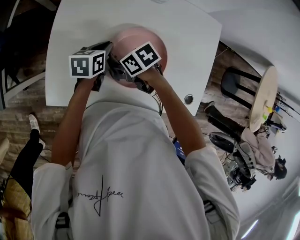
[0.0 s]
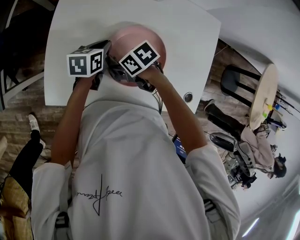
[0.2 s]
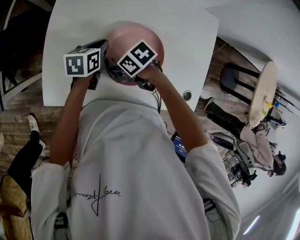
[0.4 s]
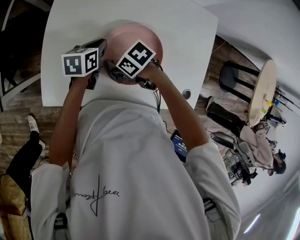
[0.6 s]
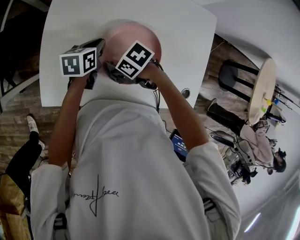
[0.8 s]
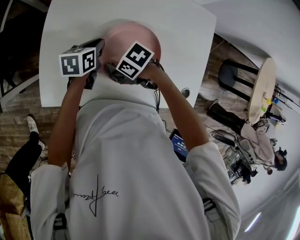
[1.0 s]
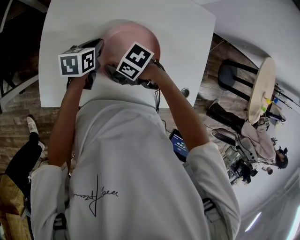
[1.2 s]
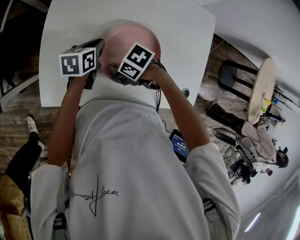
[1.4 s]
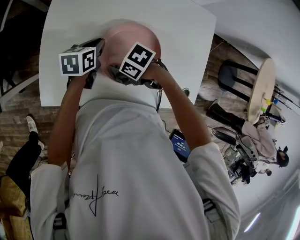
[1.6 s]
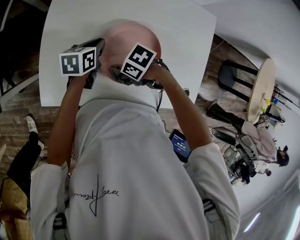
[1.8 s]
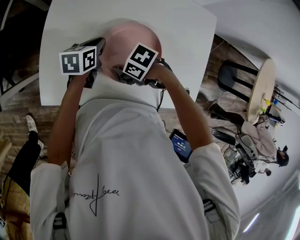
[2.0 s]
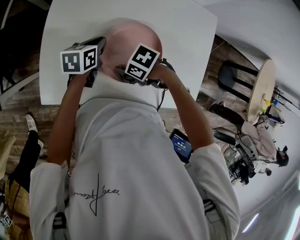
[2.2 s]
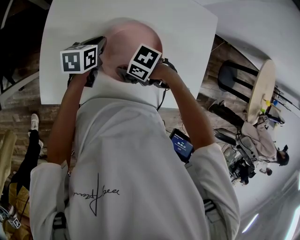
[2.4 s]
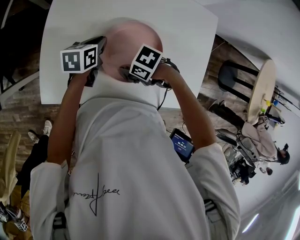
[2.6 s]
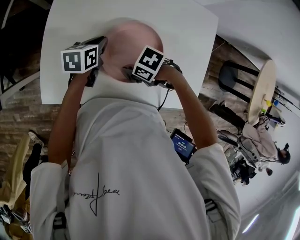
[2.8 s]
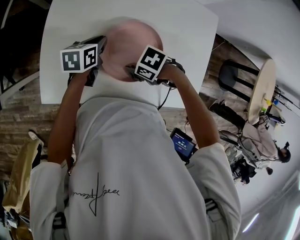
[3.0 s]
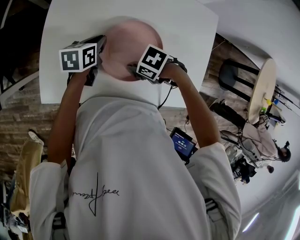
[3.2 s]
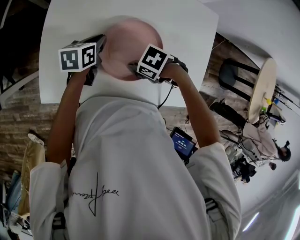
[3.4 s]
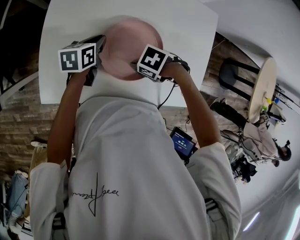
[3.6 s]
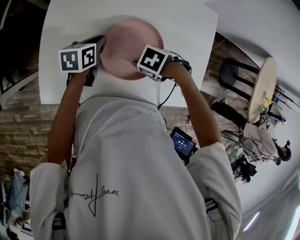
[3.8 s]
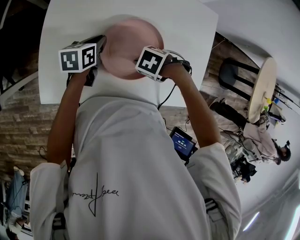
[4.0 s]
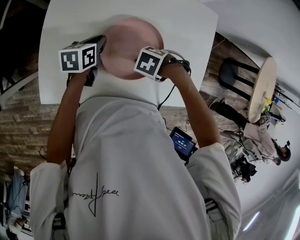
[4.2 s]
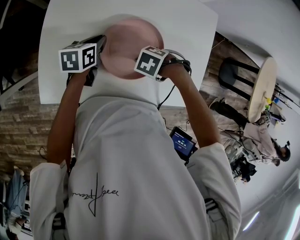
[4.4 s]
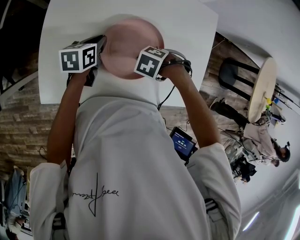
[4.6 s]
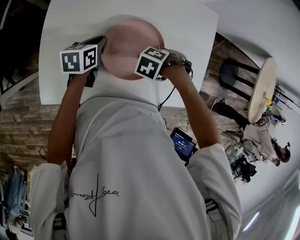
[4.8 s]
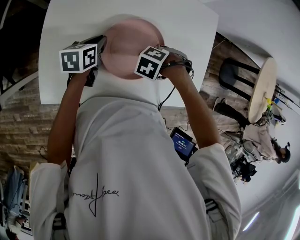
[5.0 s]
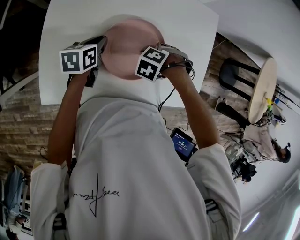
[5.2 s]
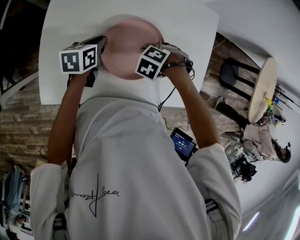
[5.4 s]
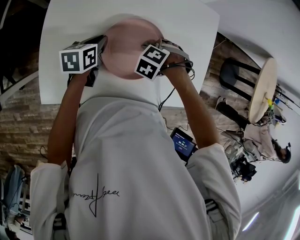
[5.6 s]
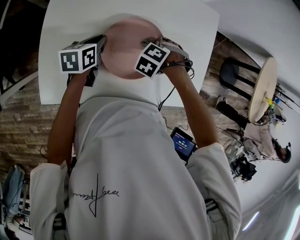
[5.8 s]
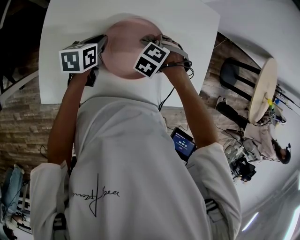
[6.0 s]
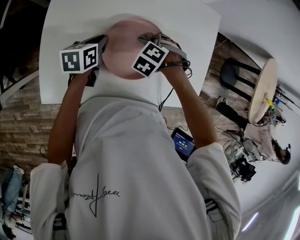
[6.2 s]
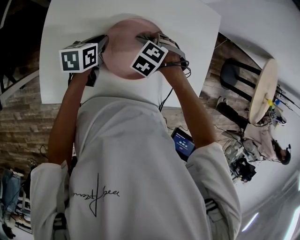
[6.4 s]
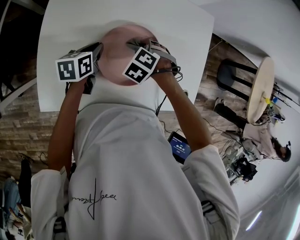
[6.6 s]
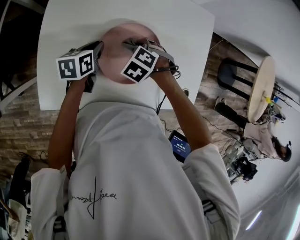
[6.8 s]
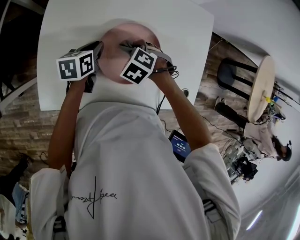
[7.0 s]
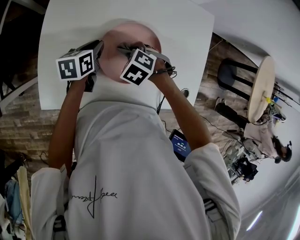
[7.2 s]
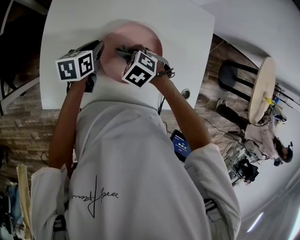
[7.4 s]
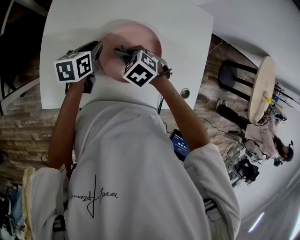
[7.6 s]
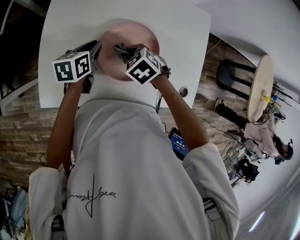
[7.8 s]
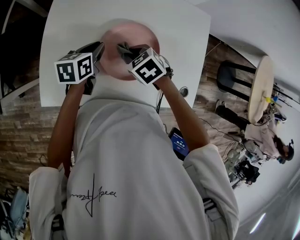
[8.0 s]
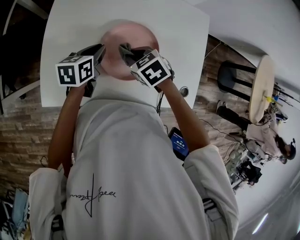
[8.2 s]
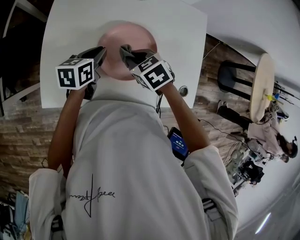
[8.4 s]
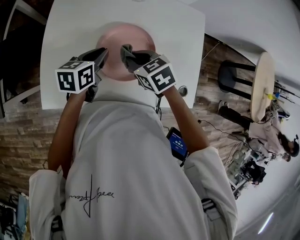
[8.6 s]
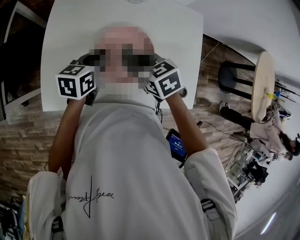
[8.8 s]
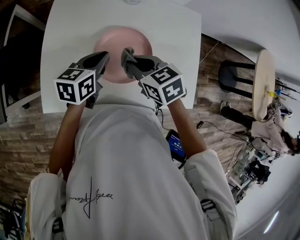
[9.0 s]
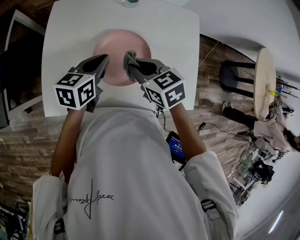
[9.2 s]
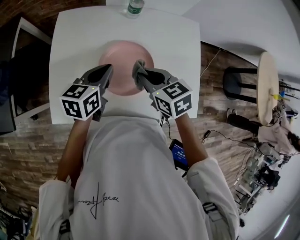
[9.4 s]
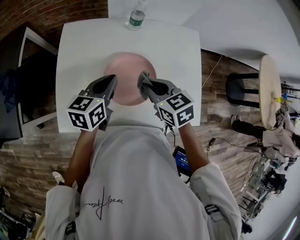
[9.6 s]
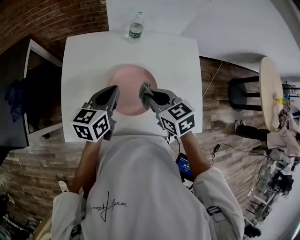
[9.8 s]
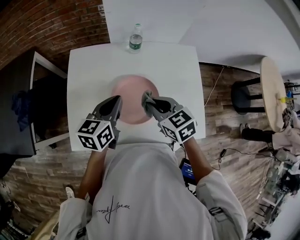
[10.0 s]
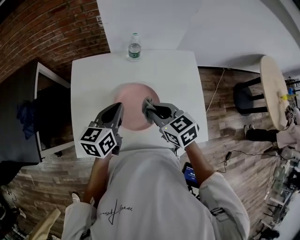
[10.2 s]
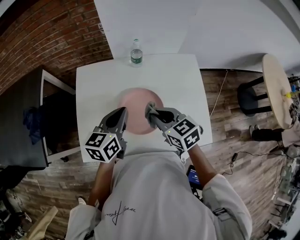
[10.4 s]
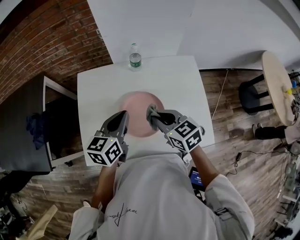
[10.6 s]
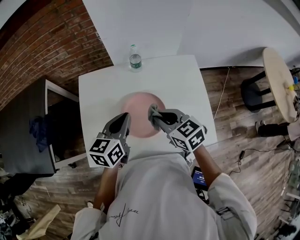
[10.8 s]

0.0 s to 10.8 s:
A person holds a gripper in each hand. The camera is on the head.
0.0 to 1.6 s: The right gripper changes place by about 5 cm, and swivels approximately 20 degrees.
1.6 to 3.0 s: The right gripper ends up about 5 cm from where it was.
3.0 to 4.6 s: The right gripper shifts by roughly 5 cm, and swivels approximately 30 degrees.
4.6 to 6.2 s: The right gripper shifts by approximately 10 cm, and turns by about 30 degrees.
6.2 to 7.8 s: The right gripper ends up some 10 cm from where it was, and turns by about 40 degrees.
7.8 to 9.2 s: The left gripper travels upward and to the right by some 10 cm, while the right gripper goes about 10 cm upward, and turns by roughly 30 degrees.
9.2 to 10.8 s: The grippers both shift upward by some 10 cm.

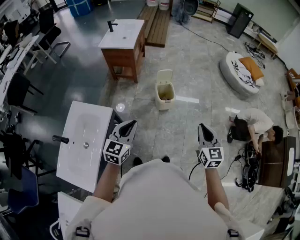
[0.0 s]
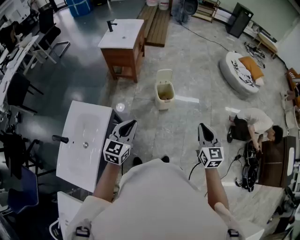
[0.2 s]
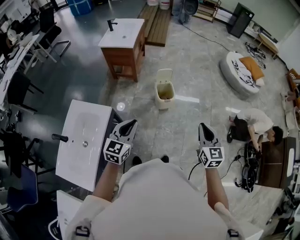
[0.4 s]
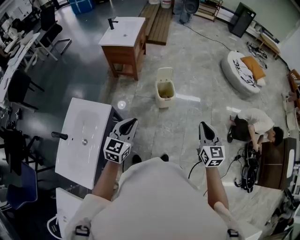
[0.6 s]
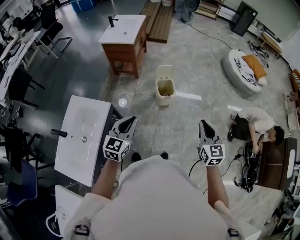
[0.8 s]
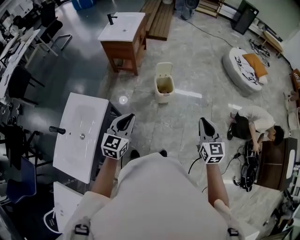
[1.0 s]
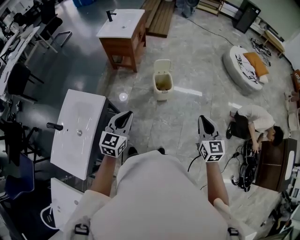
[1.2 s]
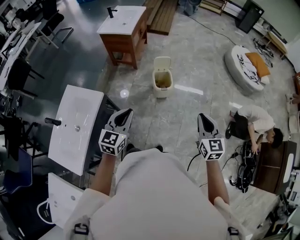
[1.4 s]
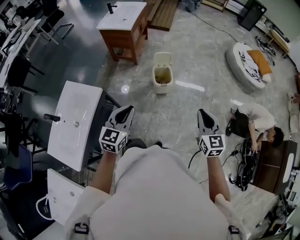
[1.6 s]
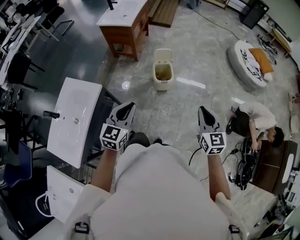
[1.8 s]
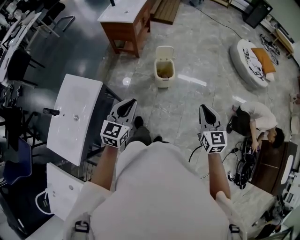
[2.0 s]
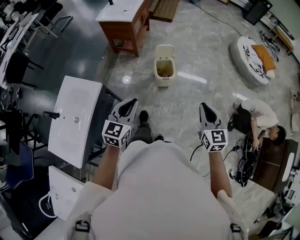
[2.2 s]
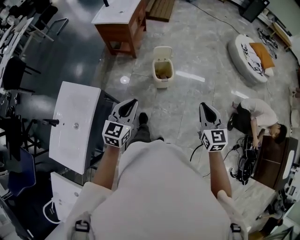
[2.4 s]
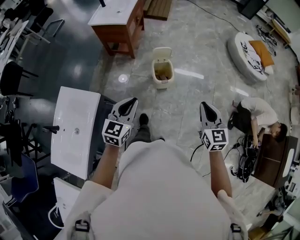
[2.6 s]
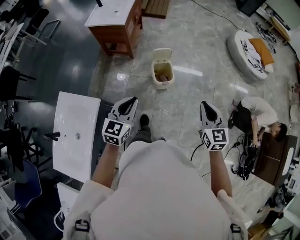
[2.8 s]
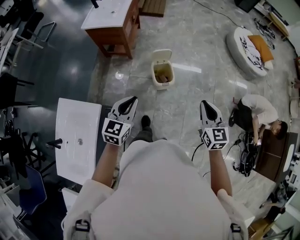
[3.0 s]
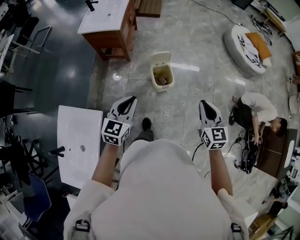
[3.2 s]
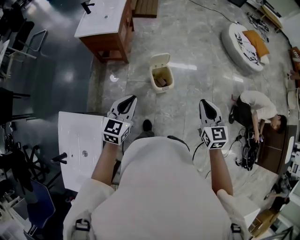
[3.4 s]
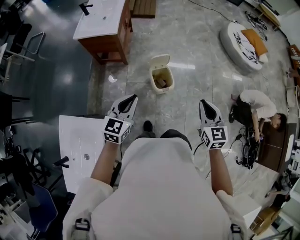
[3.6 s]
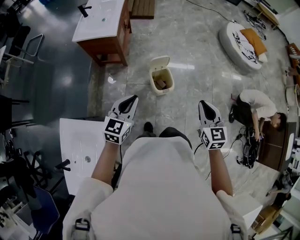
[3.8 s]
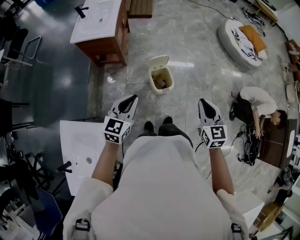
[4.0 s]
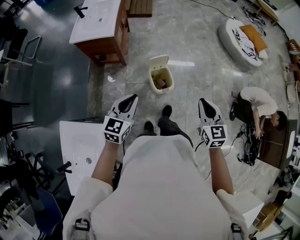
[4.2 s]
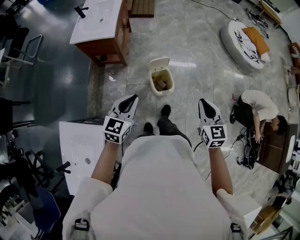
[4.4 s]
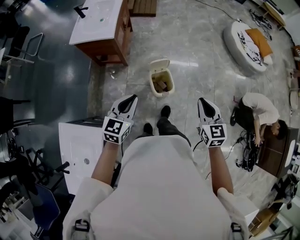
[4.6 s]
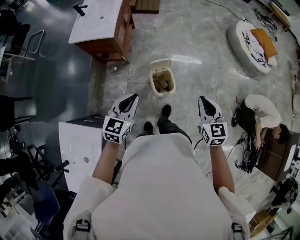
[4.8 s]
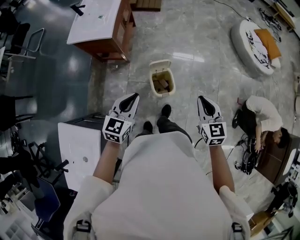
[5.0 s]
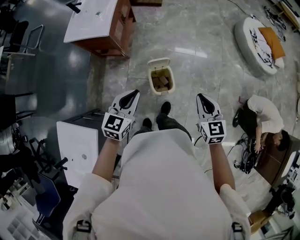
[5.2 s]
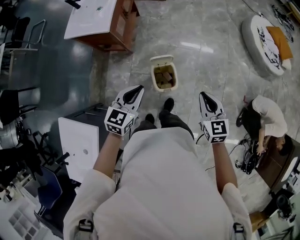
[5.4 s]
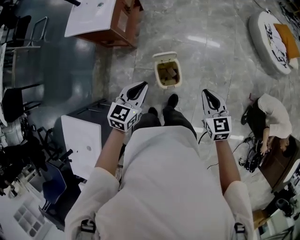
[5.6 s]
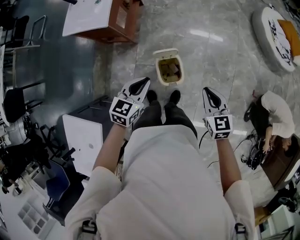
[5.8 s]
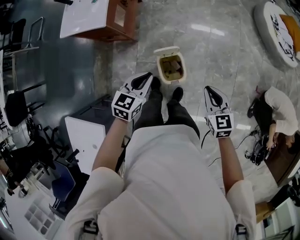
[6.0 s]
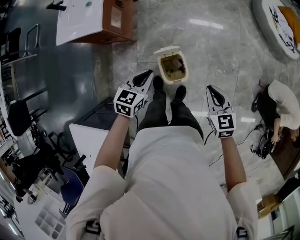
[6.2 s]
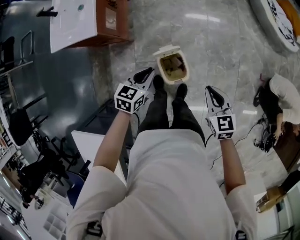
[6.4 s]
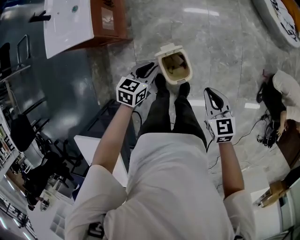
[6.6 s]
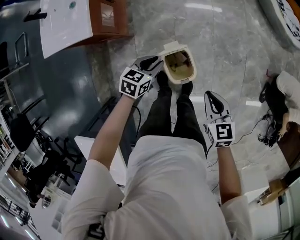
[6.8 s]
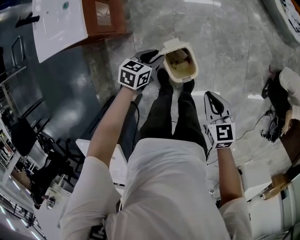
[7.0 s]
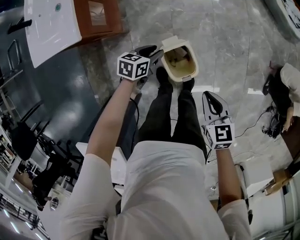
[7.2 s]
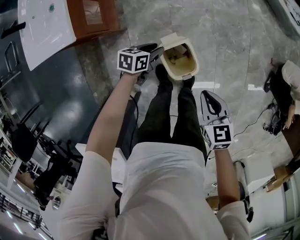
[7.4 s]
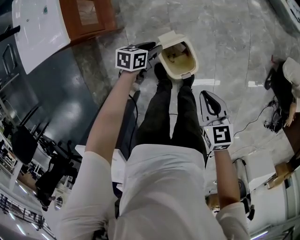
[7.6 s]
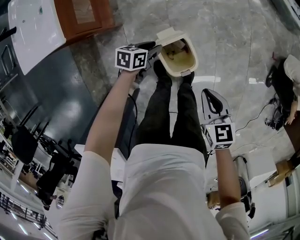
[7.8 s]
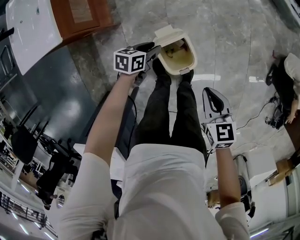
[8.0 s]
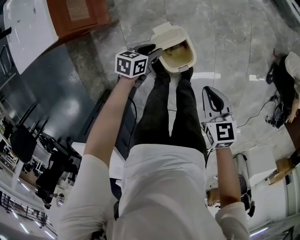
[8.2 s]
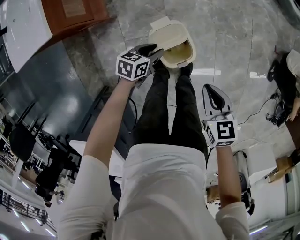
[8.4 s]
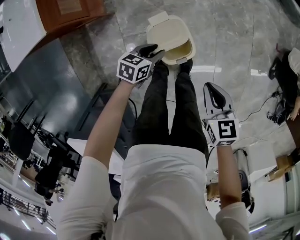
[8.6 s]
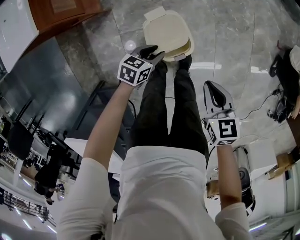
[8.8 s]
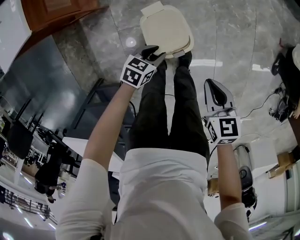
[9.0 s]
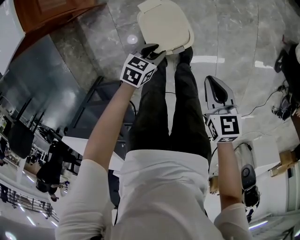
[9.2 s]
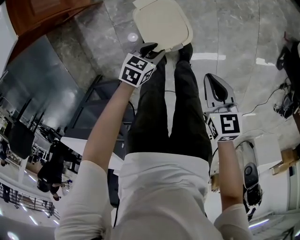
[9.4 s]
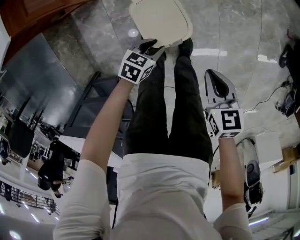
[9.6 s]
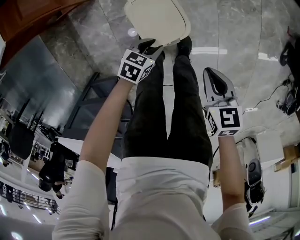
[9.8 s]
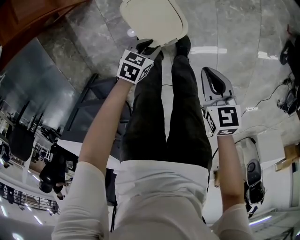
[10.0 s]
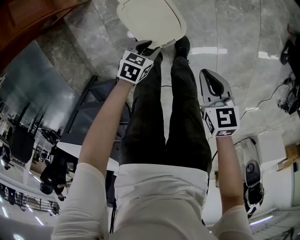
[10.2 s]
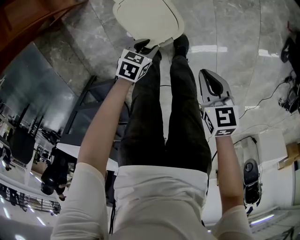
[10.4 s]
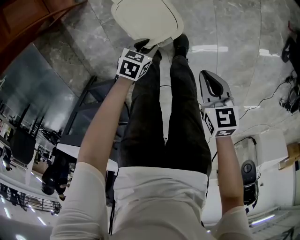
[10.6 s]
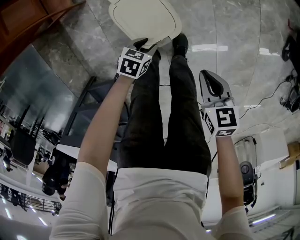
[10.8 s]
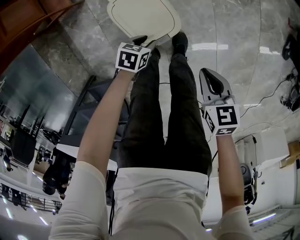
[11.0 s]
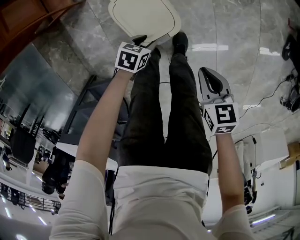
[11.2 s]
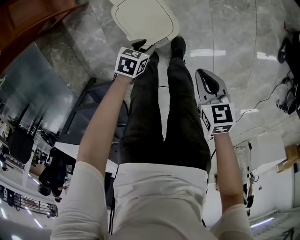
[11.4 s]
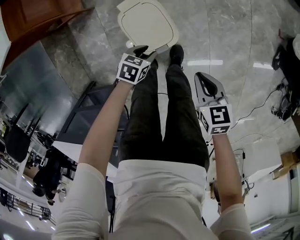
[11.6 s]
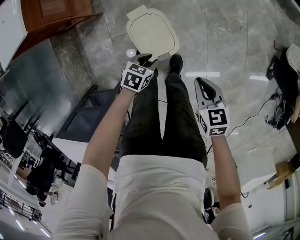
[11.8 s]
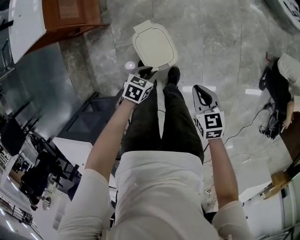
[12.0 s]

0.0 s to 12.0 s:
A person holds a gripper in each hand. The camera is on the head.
0.0 to 1.6 s: Both grippers travel together to the right, about 10 cm.
1.6 to 3.0 s: The right gripper goes some 15 cm forward and to the left, while the left gripper travels forward by about 20 cm.
3.0 to 4.4 s: Both grippers travel together forward, about 10 cm.
4.4 to 6.0 s: The left gripper moves forward, downward and to the right, roughly 25 cm. Meanwhile the right gripper moves forward and downward, about 20 cm.
6.0 to 7.6 s: The right gripper is displaced downward and to the left by roughly 15 cm, and swivels about 20 degrees. Meanwhile the left gripper travels downward by about 30 cm, rotates some 40 degrees, and opens up.
7.6 to 9.0 s: The left gripper is displaced backward, to the right and downward by some 20 cm. Meanwhile the right gripper travels to the right and downward by some 10 cm.
9.0 to 10.4 s: The two grippers go about 10 cm downward.
10.4 to 12.0 s: Both grippers move upward, about 15 cm.

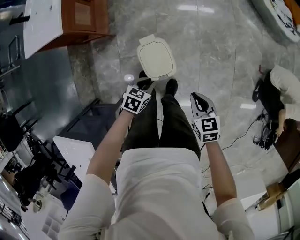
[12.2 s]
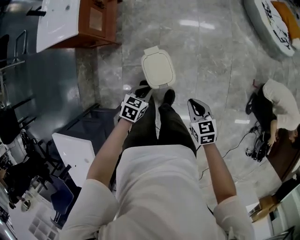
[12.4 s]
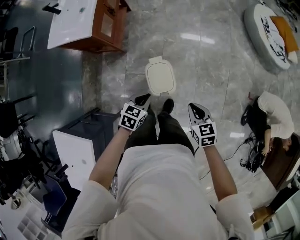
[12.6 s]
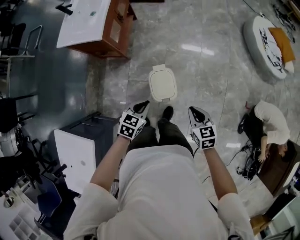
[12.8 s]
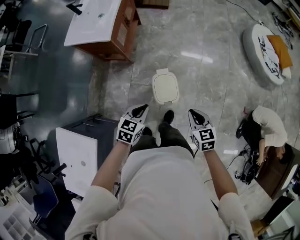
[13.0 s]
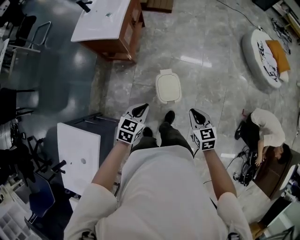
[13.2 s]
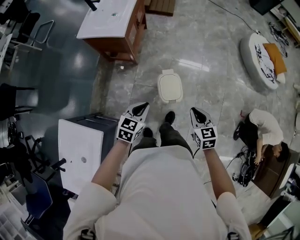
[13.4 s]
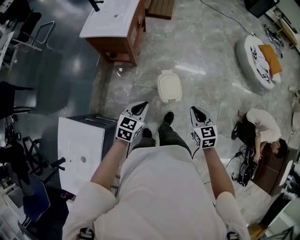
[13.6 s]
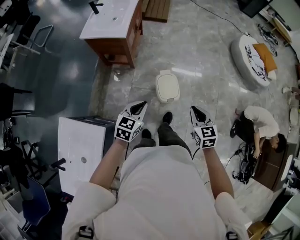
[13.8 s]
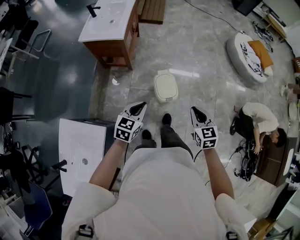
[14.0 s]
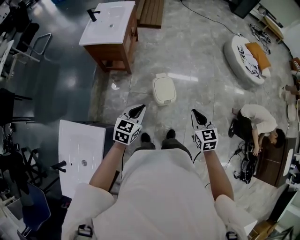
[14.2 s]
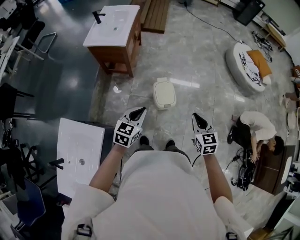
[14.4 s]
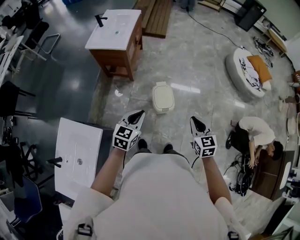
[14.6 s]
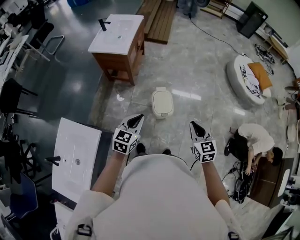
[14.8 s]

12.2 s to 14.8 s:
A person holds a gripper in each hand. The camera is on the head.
12.2 to 13.4 s: The two grippers go about 25 cm upward and to the left. The left gripper swivels roughly 30 degrees.
13.4 to 14.8 s: The left gripper shifts approximately 15 cm upward and backward. The right gripper heads upward, backward and to the right, covering about 15 cm.
